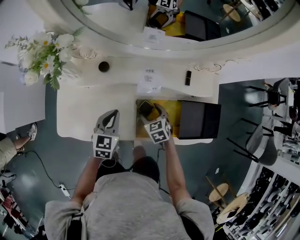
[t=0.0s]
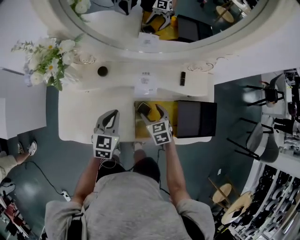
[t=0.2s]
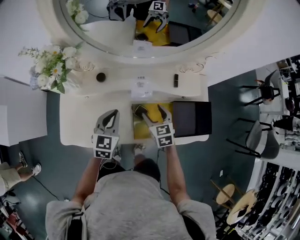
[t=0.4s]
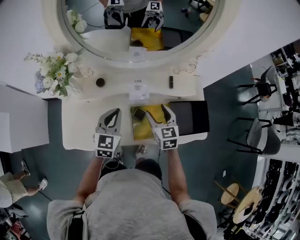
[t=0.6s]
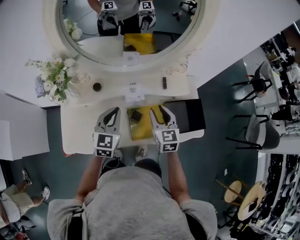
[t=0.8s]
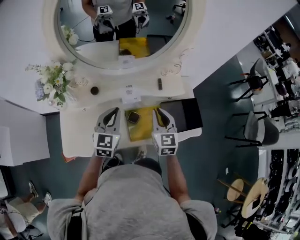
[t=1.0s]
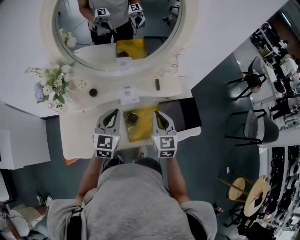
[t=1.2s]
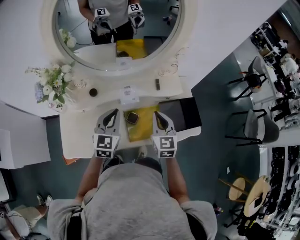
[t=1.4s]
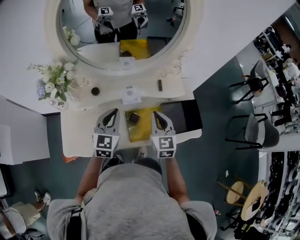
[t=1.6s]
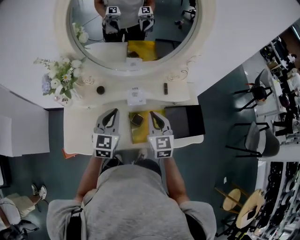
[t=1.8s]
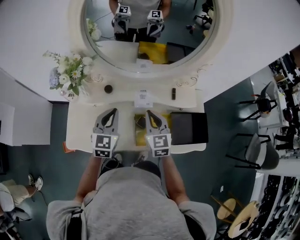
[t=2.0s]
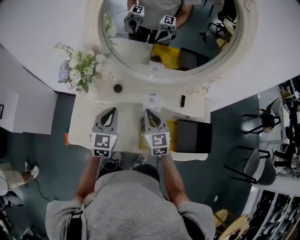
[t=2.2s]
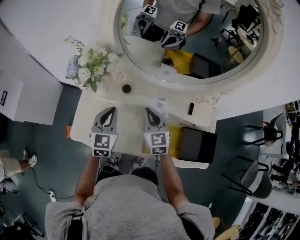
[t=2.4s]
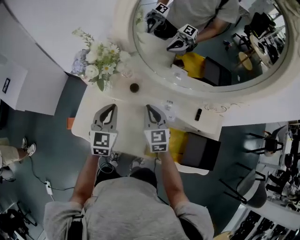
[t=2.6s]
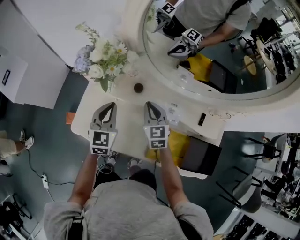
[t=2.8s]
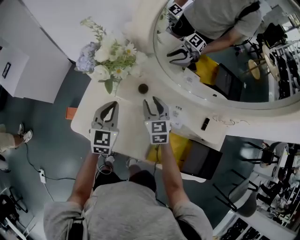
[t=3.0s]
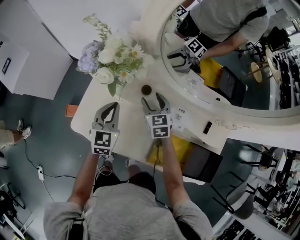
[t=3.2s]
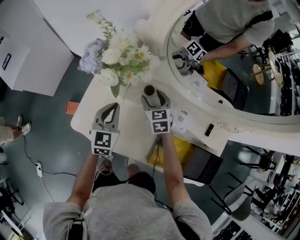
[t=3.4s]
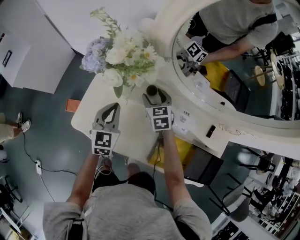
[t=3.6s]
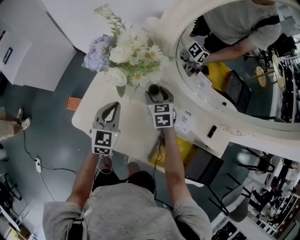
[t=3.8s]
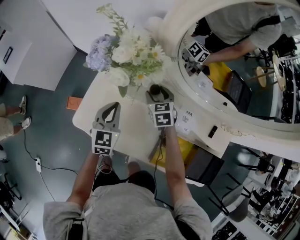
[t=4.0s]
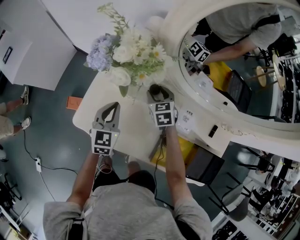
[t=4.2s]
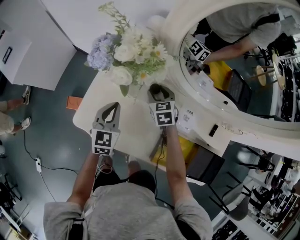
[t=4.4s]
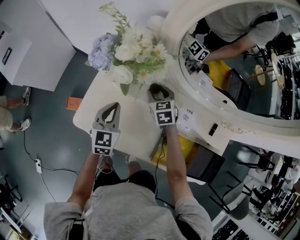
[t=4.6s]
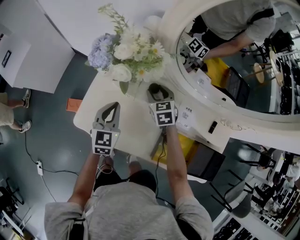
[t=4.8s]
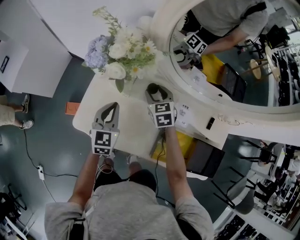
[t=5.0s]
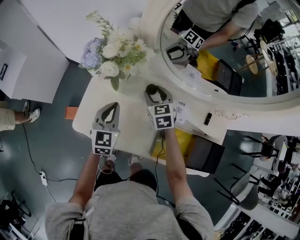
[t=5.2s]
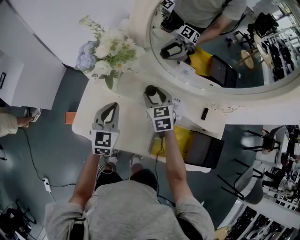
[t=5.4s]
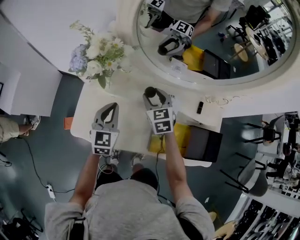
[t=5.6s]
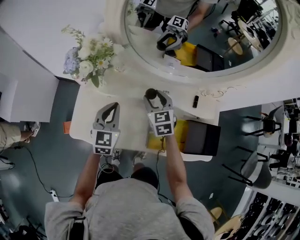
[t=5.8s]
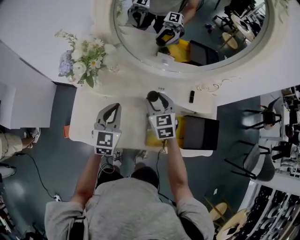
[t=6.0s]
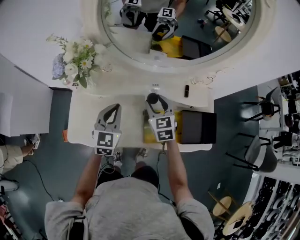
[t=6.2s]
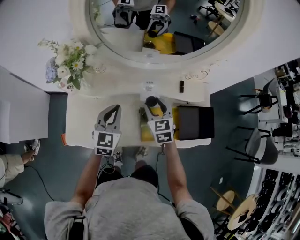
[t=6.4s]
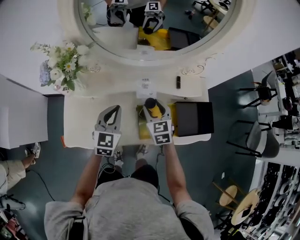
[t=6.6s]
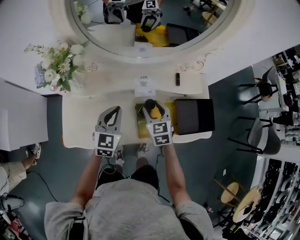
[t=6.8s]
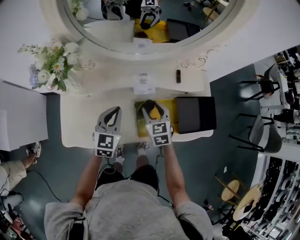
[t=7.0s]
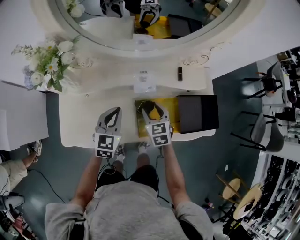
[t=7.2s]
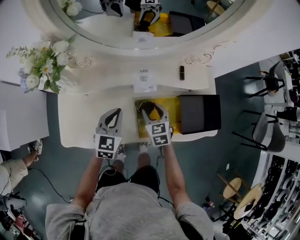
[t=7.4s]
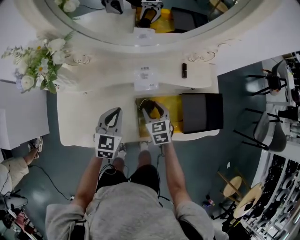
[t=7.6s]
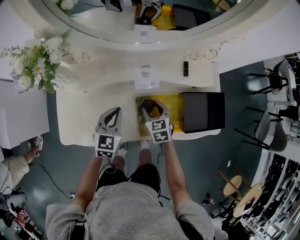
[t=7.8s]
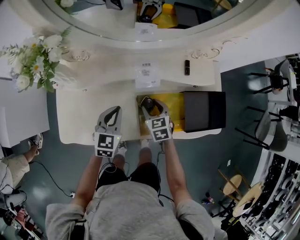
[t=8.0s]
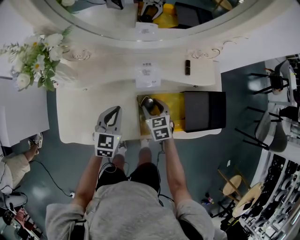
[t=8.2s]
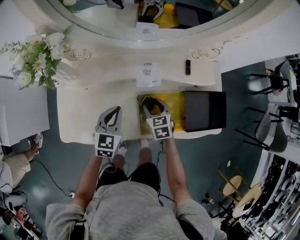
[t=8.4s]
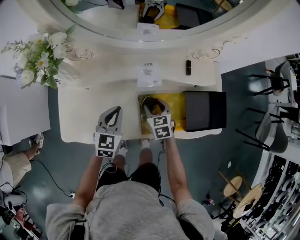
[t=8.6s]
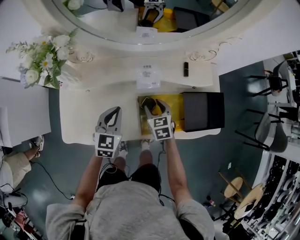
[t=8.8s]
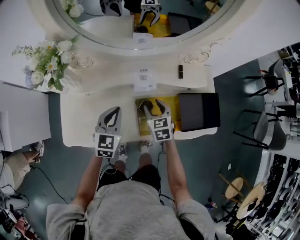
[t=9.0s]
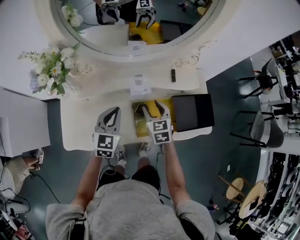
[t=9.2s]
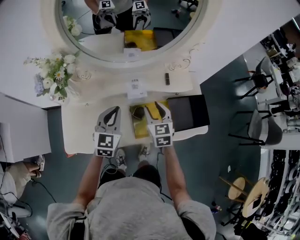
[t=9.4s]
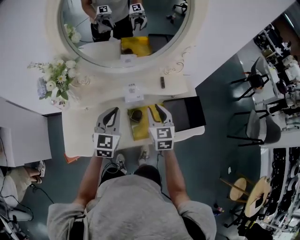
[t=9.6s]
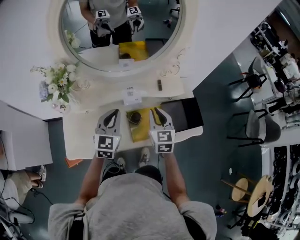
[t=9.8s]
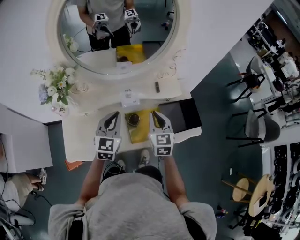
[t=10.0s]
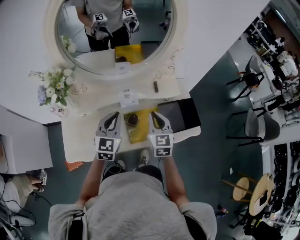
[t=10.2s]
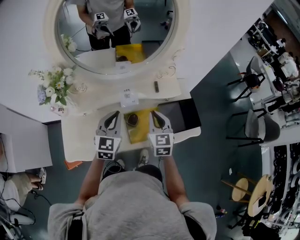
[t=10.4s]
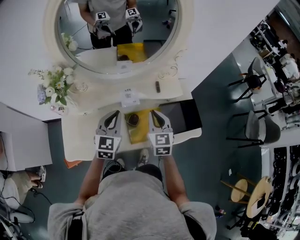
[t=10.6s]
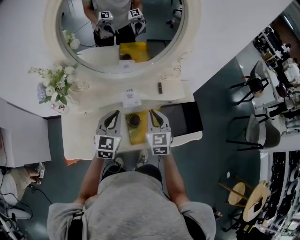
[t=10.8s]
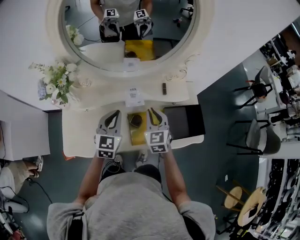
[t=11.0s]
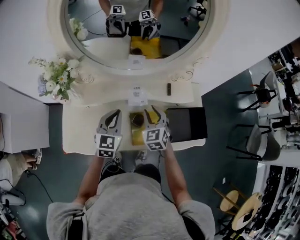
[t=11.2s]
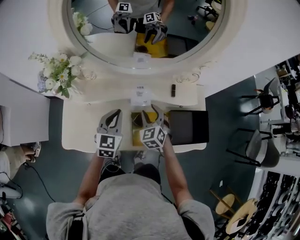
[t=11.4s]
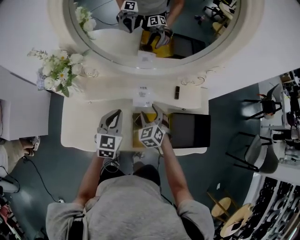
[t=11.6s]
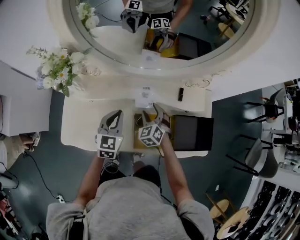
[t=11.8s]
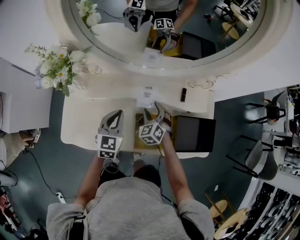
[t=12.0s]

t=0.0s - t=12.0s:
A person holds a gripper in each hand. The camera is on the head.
t=0.0s - t=1.6s: The left gripper moves upward, approximately 15 cm, and rotates approximately 20 degrees. The right gripper is displaced upward by approximately 25 cm, points its fingers about 30 degrees further upward, and closes up.
t=1.6s - t=3.0s: The right gripper ends up approximately 30 cm from where it was, and swivels about 30 degrees. Meanwhile the left gripper changes place by some 20 cm, and changes its angle by roughly 30 degrees.
t=3.0s - t=4.4s: The left gripper moves roughly 5 cm. The right gripper is displaced downward and forward by roughly 10 cm.
t=4.4s - t=6.0s: The left gripper heads to the right and upward, covering some 15 cm, and changes its angle by some 20 degrees; the right gripper shifts approximately 20 cm backward, to the right and upward, and changes its angle by some 20 degrees.
t=6.0s - t=7.6s: The left gripper shifts some 15 cm downward and to the right. The right gripper is displaced downward, to the right and backward by about 20 cm.
t=7.6s - t=9.0s: There are only small adjustments of the grippers.
t=9.0s - t=10.4s: Both grippers travel together upward and to the right, roughly 15 cm. The right gripper changes its angle by some 30 degrees, and closes its fingers.
t=10.4s - t=12.0s: The left gripper travels downward and to the left by about 10 cm; the right gripper is displaced downward, forward and to the left by some 25 cm, turns by approximately 40 degrees, and opens.

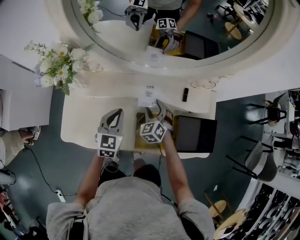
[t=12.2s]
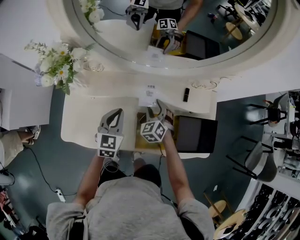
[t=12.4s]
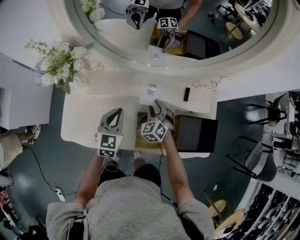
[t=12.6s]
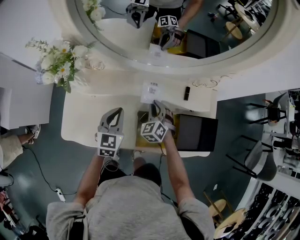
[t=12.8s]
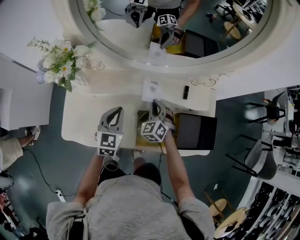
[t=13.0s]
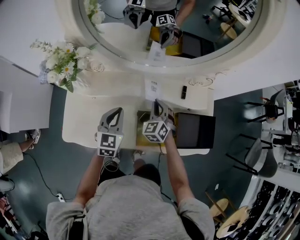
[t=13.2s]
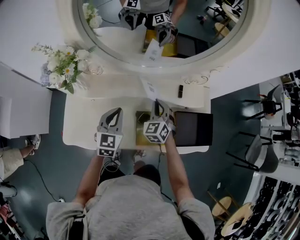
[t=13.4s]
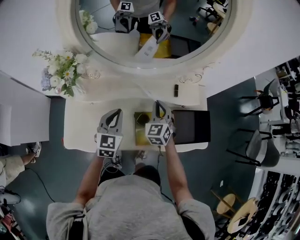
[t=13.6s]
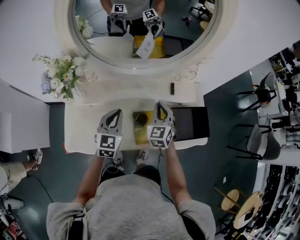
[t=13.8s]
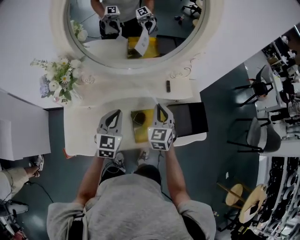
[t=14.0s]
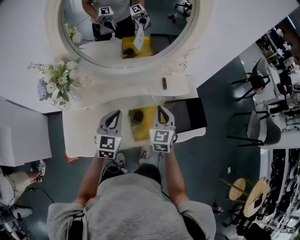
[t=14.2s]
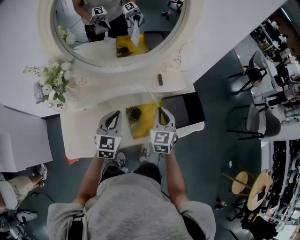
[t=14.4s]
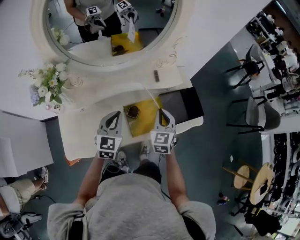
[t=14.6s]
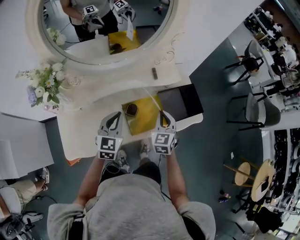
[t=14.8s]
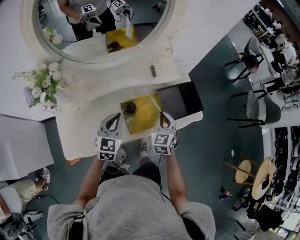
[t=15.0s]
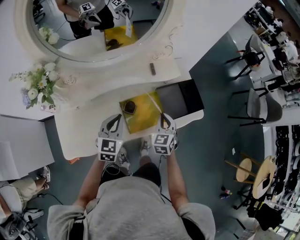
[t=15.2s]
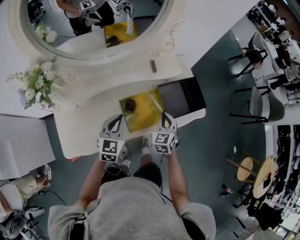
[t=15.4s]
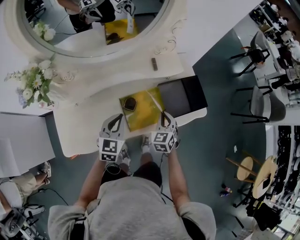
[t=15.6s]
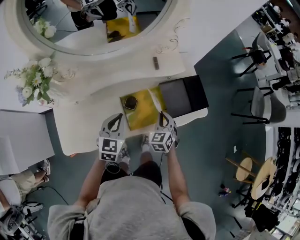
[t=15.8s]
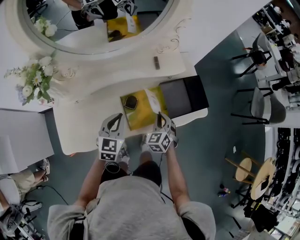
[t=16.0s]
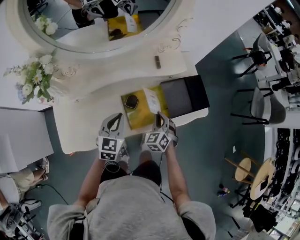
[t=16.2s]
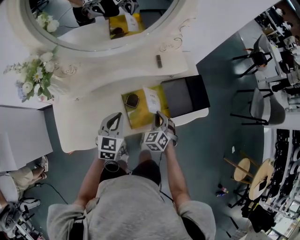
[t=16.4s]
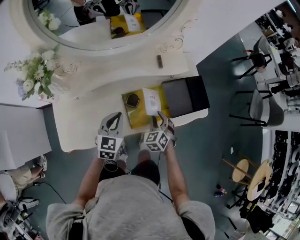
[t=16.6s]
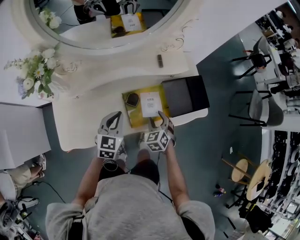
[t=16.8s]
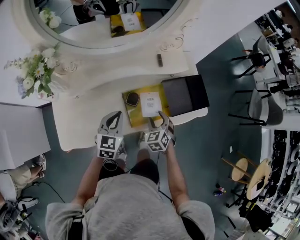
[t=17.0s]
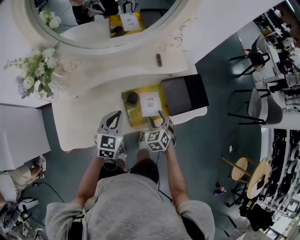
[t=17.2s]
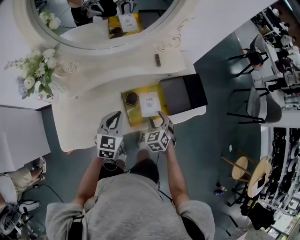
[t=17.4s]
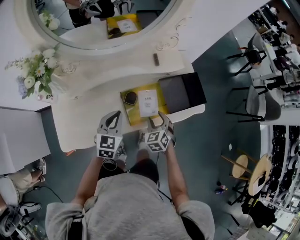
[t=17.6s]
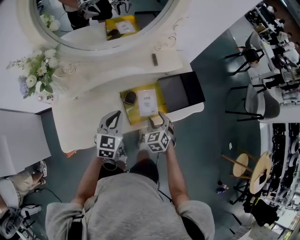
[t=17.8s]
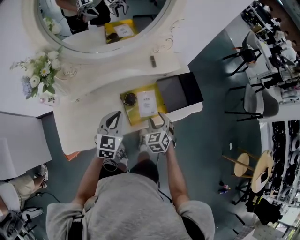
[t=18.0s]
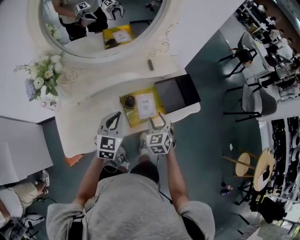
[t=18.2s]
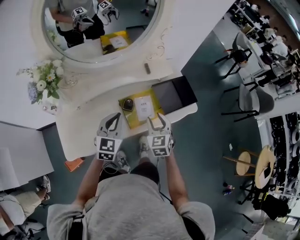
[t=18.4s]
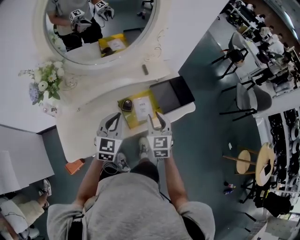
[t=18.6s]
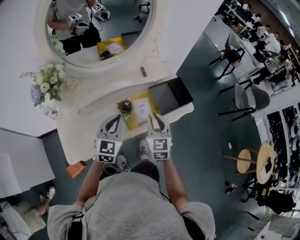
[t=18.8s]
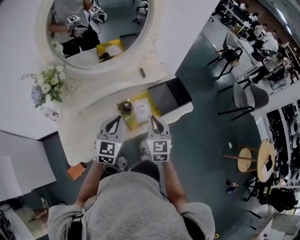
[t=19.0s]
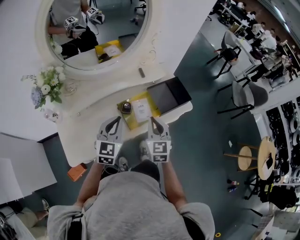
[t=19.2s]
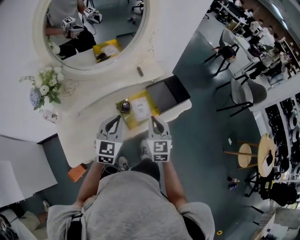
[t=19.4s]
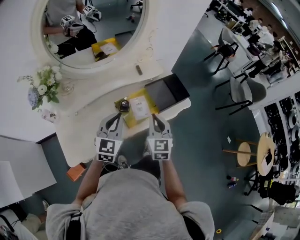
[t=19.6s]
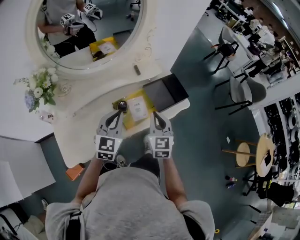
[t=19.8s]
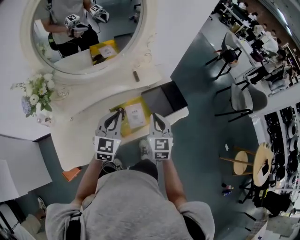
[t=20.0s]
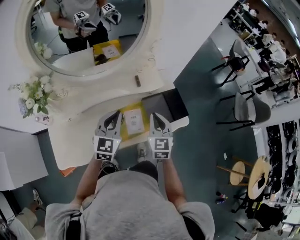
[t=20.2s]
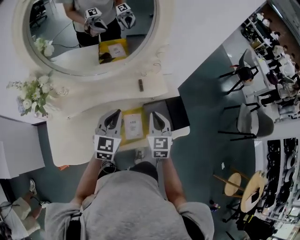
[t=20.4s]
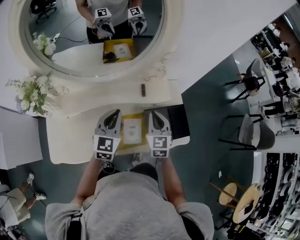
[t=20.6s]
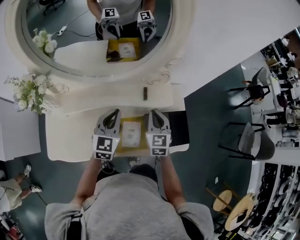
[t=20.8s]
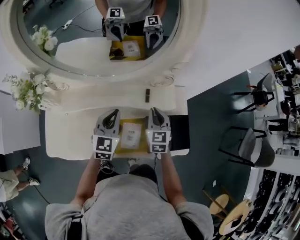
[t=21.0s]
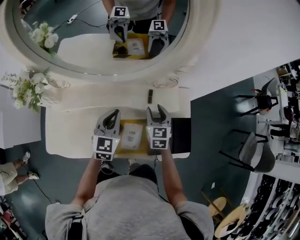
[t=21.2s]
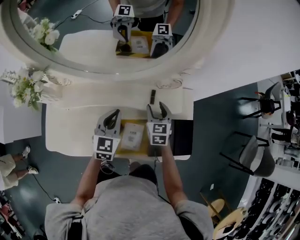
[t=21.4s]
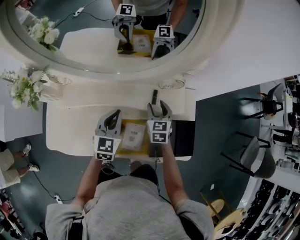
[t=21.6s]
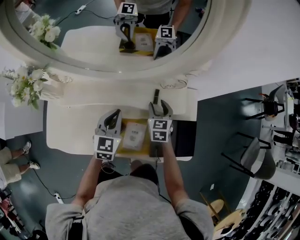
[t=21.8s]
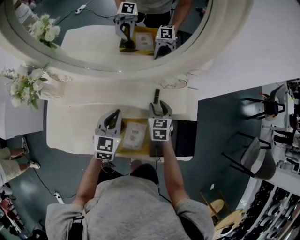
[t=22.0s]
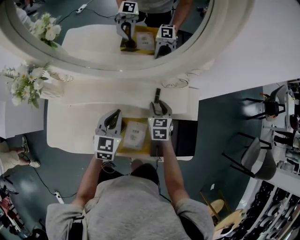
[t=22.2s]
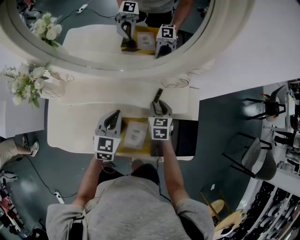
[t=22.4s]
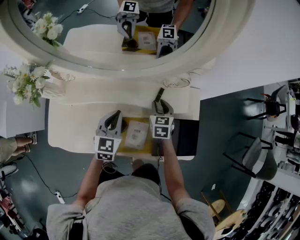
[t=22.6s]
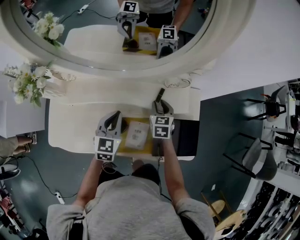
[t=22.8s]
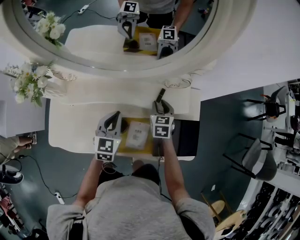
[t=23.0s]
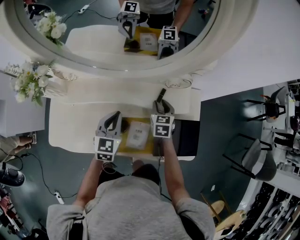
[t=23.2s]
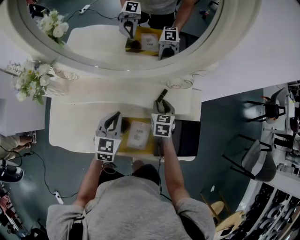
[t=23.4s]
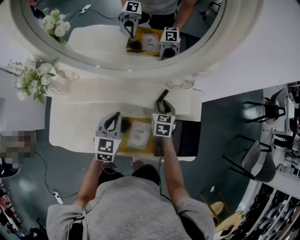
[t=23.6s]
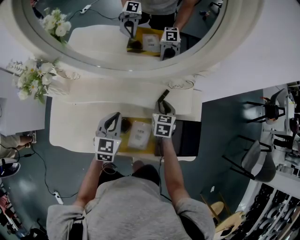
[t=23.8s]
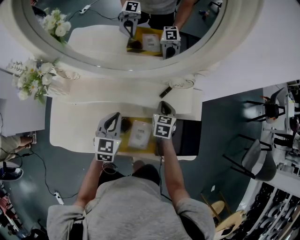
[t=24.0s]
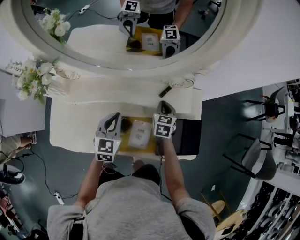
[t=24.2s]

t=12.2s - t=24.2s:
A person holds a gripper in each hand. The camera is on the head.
t=12.2s - t=13.8s: The right gripper is displaced upward and to the right by approximately 15 cm, changes its angle by about 30 degrees, and closes up. The left gripper is displaced upward by some 5 cm.
t=13.8s - t=15.2s: The left gripper travels to the right by about 10 cm. The right gripper travels to the right, backward and downward by some 20 cm, and swivels approximately 20 degrees.
t=15.2s - t=16.6s: The right gripper travels downward by approximately 10 cm, and changes its angle by roughly 20 degrees.
t=16.6s - t=18.2s: The grippers both shift upward by some 5 cm.
t=18.2s - t=19.8s: The left gripper is displaced upward by about 5 cm. Meanwhile the right gripper is displaced upward by about 10 cm, changes its angle by some 30 degrees, and closes.
t=19.8s - t=21.2s: The right gripper ends up roughly 30 cm from where it was, turns by roughly 30 degrees, and opens its fingers. The left gripper moves some 20 cm, and swivels roughly 30 degrees.
t=21.2s - t=22.6s: The right gripper heads downward, covering some 5 cm.
t=22.6s - t=24.2s: The right gripper closes.
